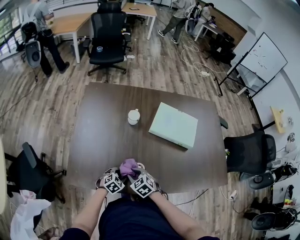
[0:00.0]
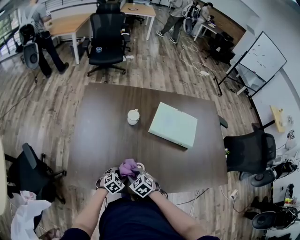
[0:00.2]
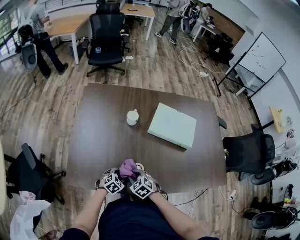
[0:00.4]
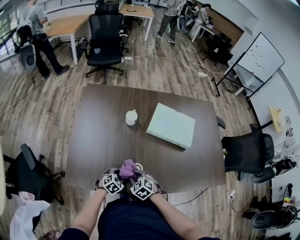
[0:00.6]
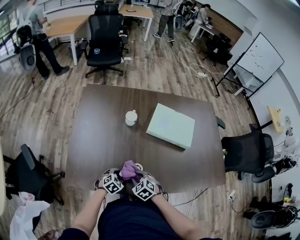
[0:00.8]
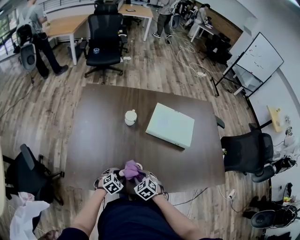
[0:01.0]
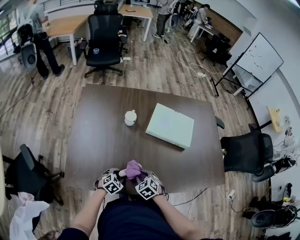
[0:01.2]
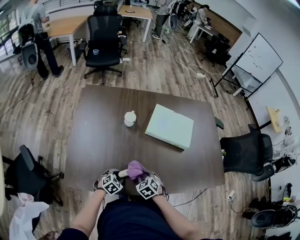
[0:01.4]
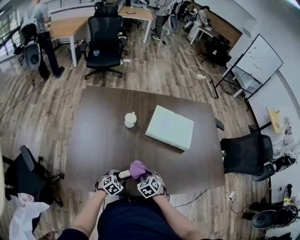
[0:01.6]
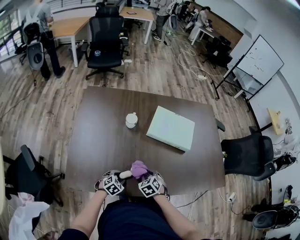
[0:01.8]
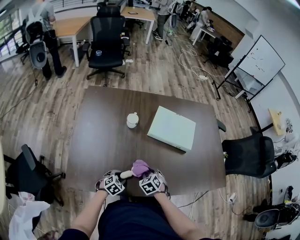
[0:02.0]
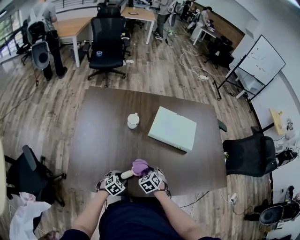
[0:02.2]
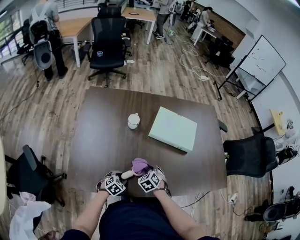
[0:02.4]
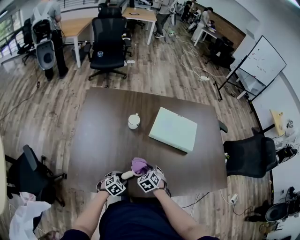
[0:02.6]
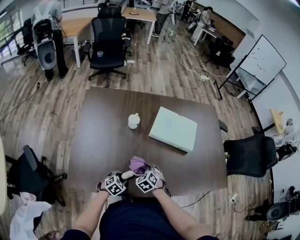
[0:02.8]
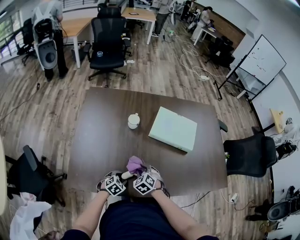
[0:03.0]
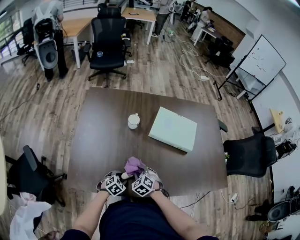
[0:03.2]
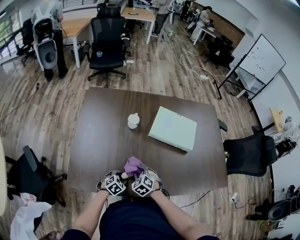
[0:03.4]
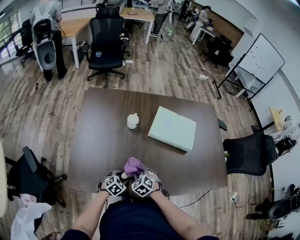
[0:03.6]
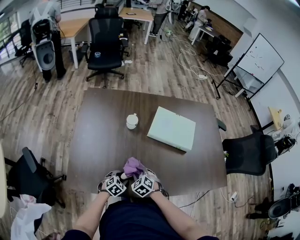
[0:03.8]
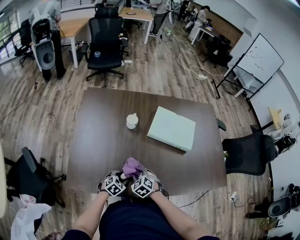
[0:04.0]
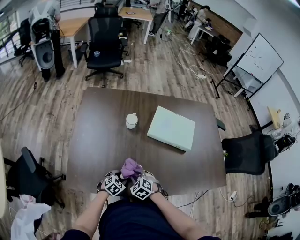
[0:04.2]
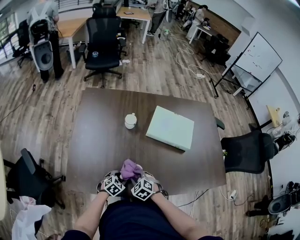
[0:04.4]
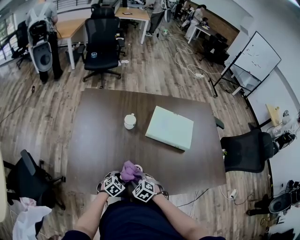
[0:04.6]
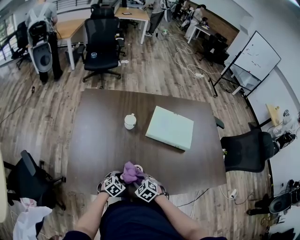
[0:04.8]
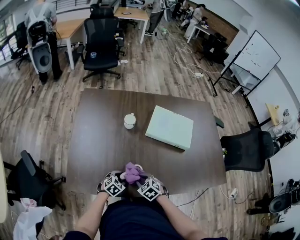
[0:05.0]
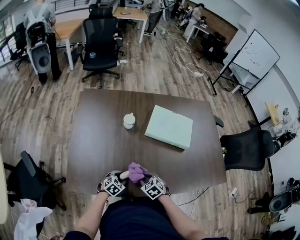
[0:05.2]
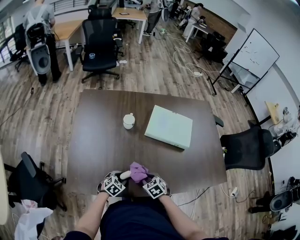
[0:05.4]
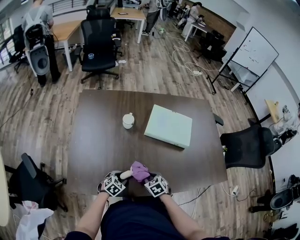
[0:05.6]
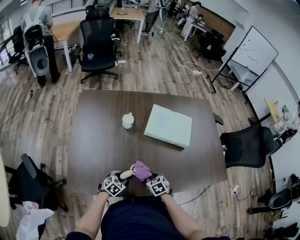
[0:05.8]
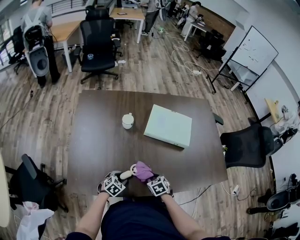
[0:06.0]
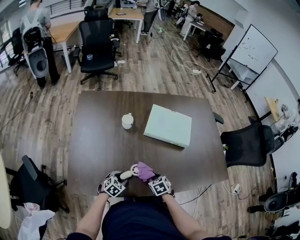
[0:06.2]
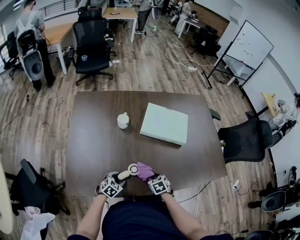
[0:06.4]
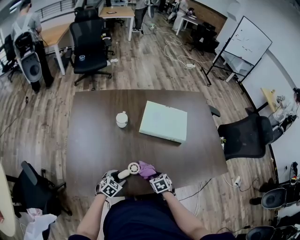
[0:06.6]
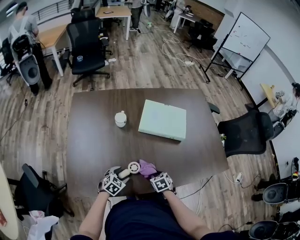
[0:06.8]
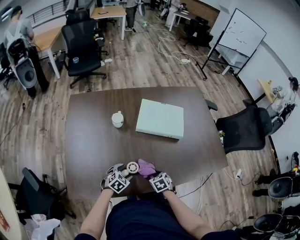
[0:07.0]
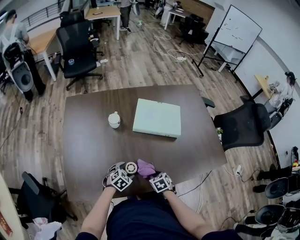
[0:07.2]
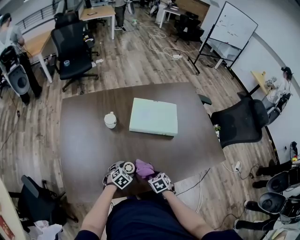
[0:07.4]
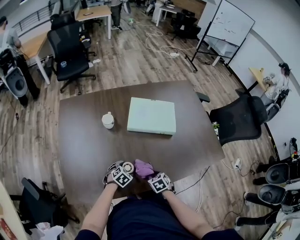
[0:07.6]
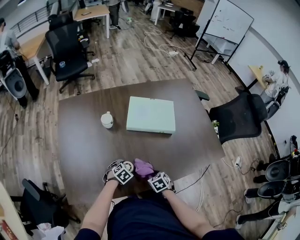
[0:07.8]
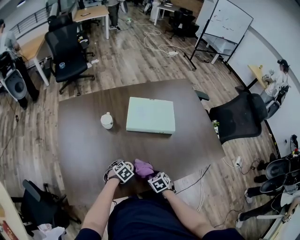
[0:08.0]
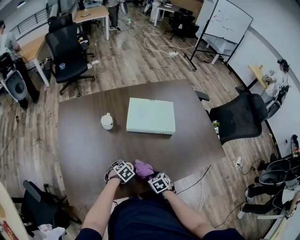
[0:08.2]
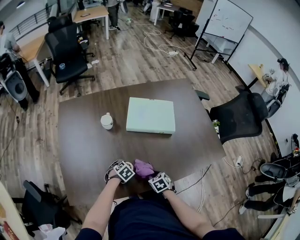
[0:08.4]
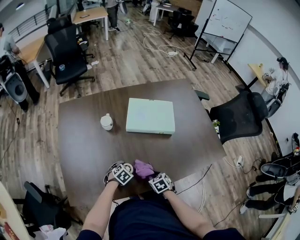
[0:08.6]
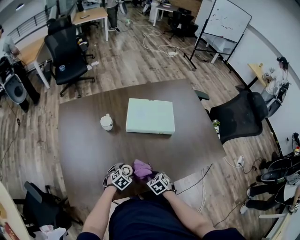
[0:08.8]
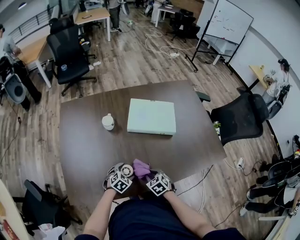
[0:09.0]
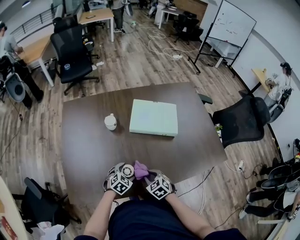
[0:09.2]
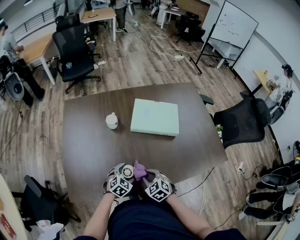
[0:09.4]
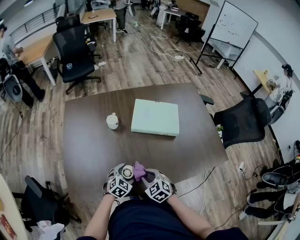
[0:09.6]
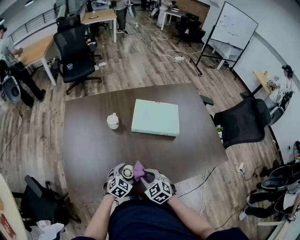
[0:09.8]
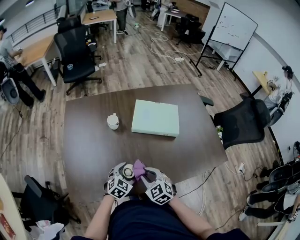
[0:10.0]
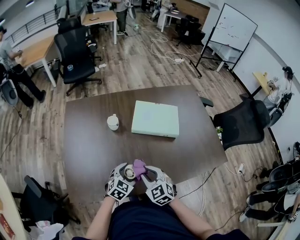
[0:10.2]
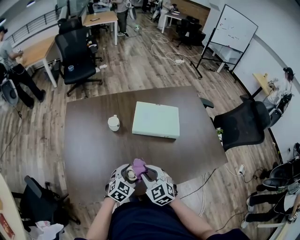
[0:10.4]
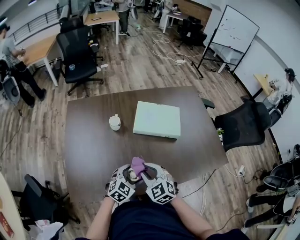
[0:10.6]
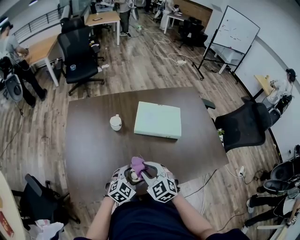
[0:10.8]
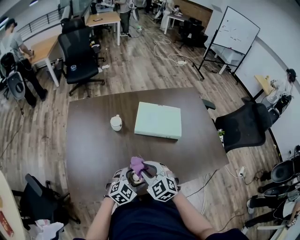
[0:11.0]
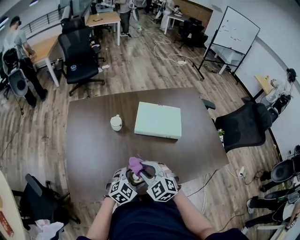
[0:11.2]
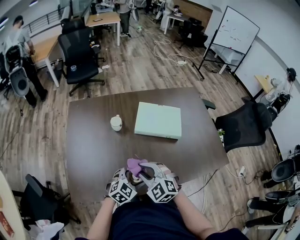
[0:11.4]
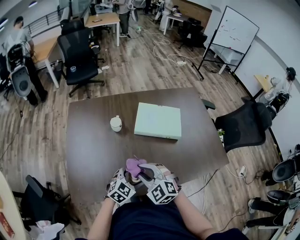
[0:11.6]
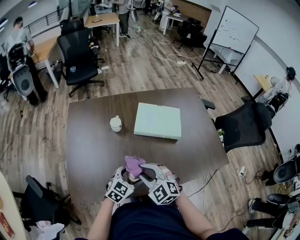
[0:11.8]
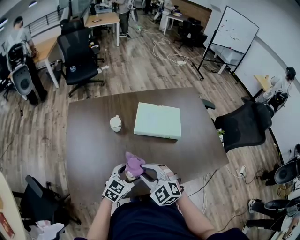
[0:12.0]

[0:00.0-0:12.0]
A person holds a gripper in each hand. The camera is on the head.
0:00.0 to 0:01.6: The right gripper shifts roughly 10 cm to the right.
0:01.6 to 0:03.0: The right gripper travels to the left by about 5 cm.
0:03.0 to 0:04.4: The right gripper is displaced backward by some 5 cm.
0:04.4 to 0:06.0: The right gripper goes roughly 10 cm to the right, and turns by approximately 30 degrees.
0:06.0 to 0:07.6: The left gripper shifts some 10 cm to the right and forward, and opens up; the right gripper shifts approximately 5 cm to the right.
0:07.6 to 0:09.0: The grippers make only small movements.
0:09.0 to 0:10.4: Both grippers move upward, about 15 cm. The right gripper changes its angle by about 30 degrees.
0:10.4 to 0:12.0: The right gripper moves approximately 5 cm.

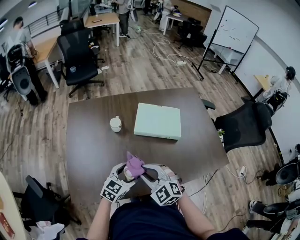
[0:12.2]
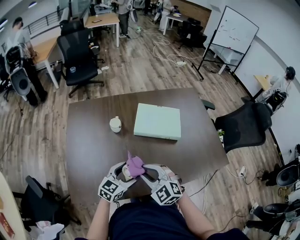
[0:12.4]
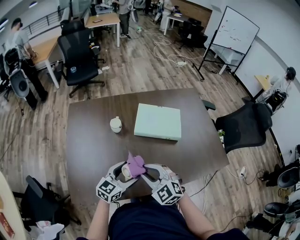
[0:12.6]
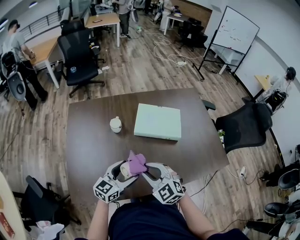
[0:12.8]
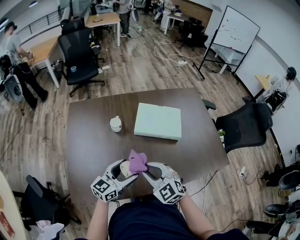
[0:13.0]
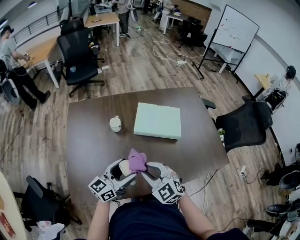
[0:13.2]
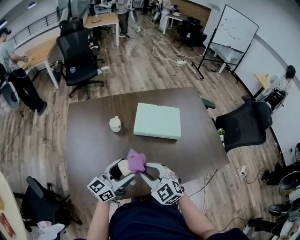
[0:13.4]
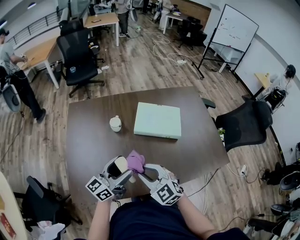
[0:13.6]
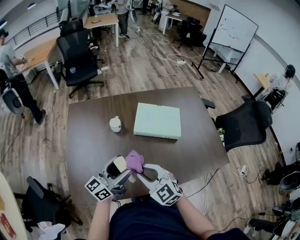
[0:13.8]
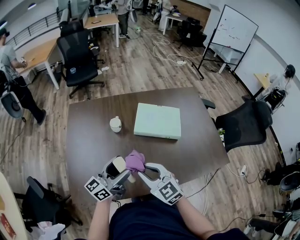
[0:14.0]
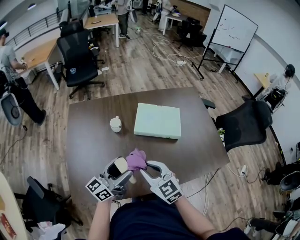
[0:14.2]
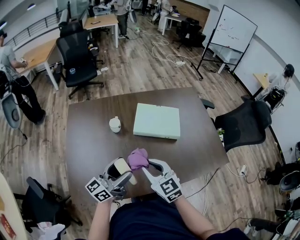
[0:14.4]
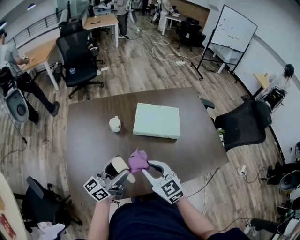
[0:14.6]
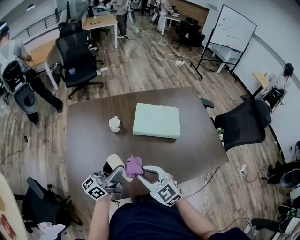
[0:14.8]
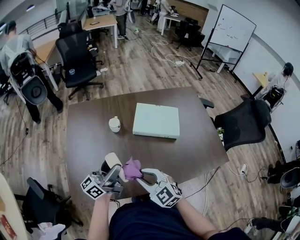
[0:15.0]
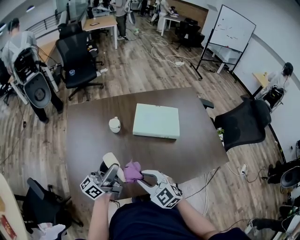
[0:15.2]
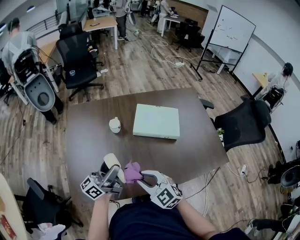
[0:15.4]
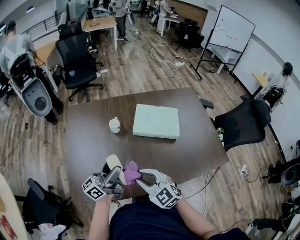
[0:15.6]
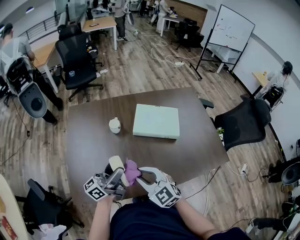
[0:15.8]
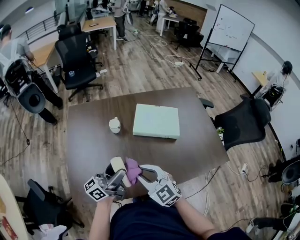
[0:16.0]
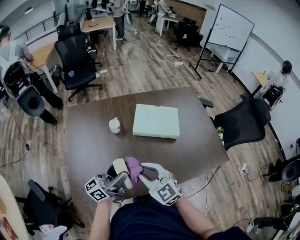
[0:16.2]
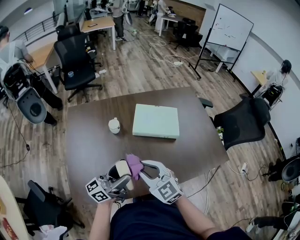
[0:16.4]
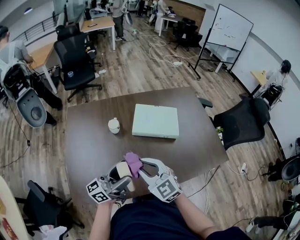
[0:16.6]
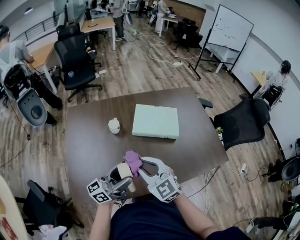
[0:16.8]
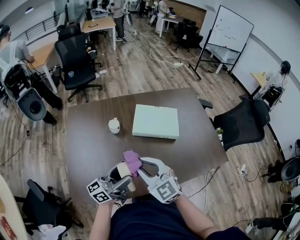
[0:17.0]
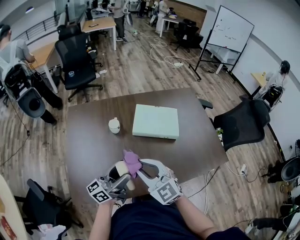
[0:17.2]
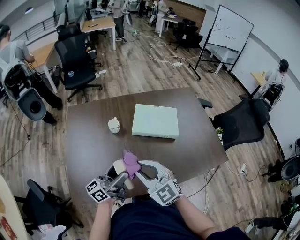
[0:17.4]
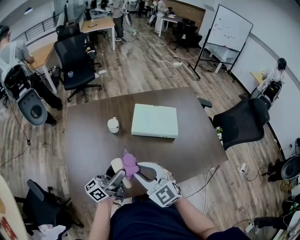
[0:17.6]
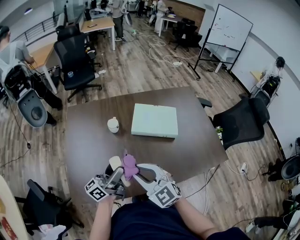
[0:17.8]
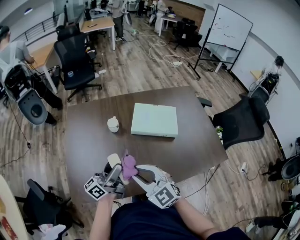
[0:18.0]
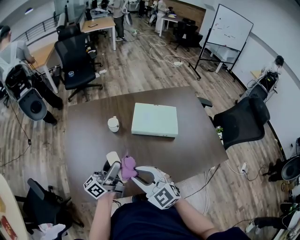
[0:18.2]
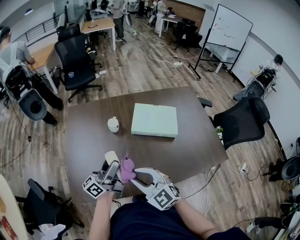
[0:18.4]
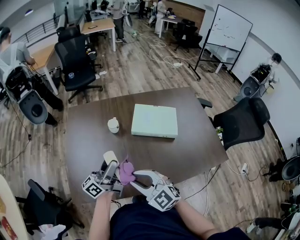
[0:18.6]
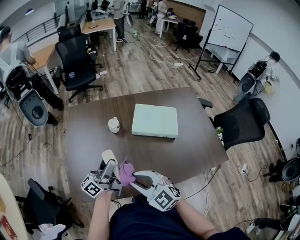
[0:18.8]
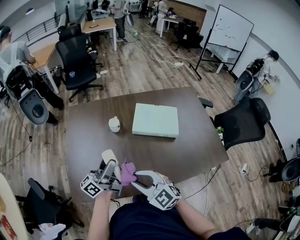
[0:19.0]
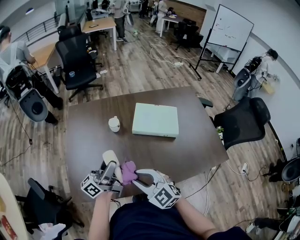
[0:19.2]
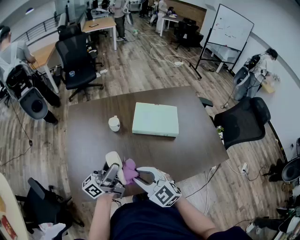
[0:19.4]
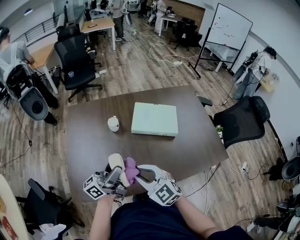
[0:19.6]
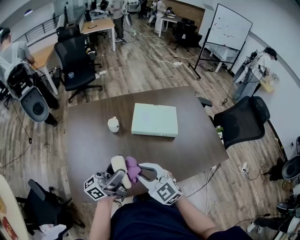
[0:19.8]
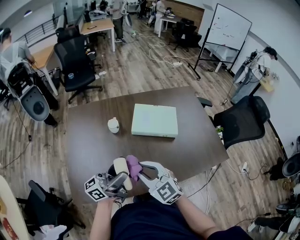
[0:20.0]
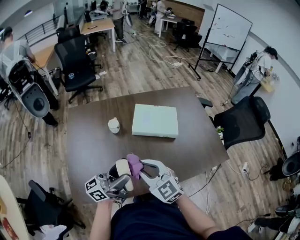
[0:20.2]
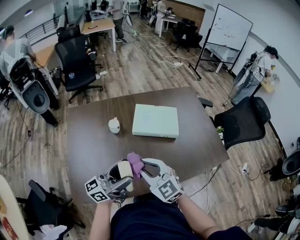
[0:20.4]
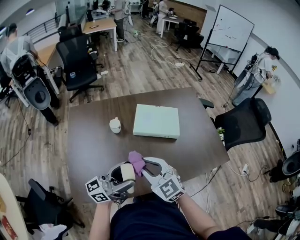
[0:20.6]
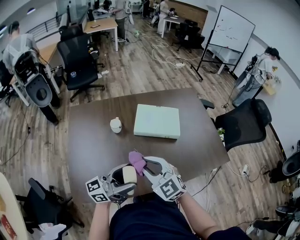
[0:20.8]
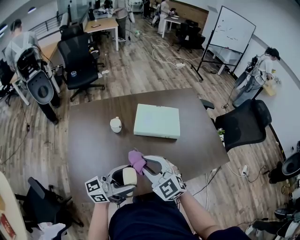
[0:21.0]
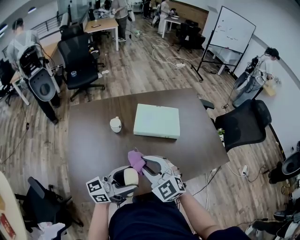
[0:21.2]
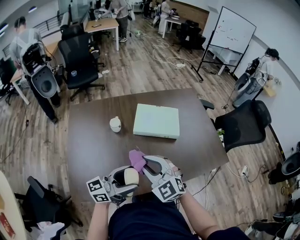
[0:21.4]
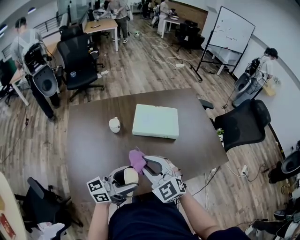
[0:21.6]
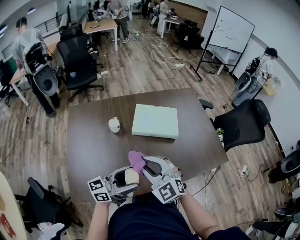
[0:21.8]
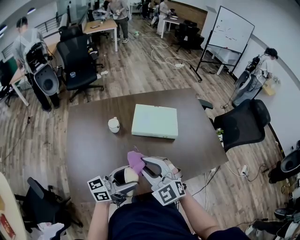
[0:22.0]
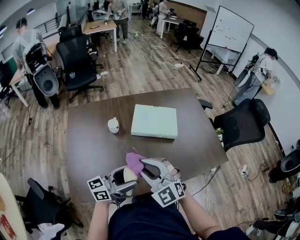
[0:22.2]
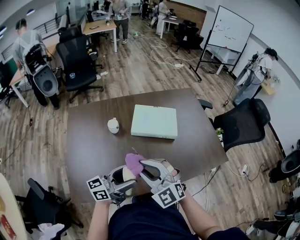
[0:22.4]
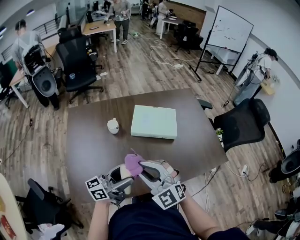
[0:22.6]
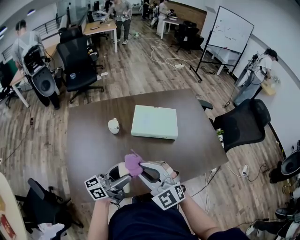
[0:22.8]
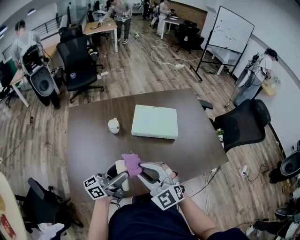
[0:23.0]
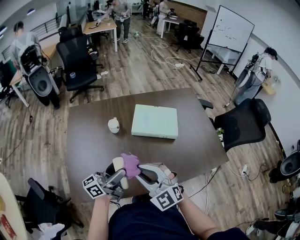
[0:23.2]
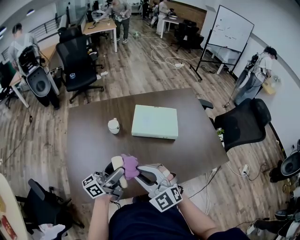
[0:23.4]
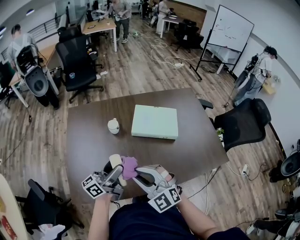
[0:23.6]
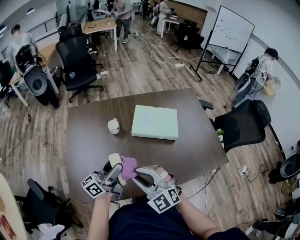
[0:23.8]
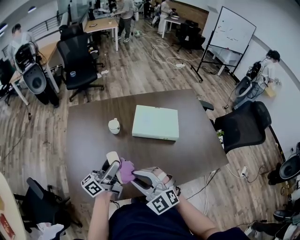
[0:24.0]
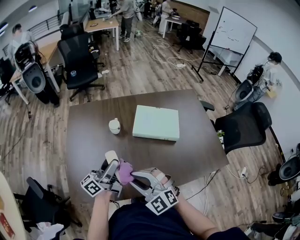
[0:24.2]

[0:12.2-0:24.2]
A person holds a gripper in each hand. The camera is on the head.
0:12.2 to 0:13.8: The left gripper is displaced upward by roughly 10 cm, and tilts its fingers some 40 degrees upward.
0:13.8 to 0:15.2: The left gripper changes place by roughly 5 cm.
0:15.2 to 0:16.6: The left gripper moves to the right, approximately 5 cm, while the right gripper travels upward by about 5 cm.
0:16.6 to 0:18.2: The left gripper shifts by about 5 cm. The right gripper moves backward, approximately 5 cm.
0:18.2 to 0:19.8: The left gripper ends up about 5 cm from where it was.
0:19.8 to 0:21.2: The left gripper ends up roughly 5 cm from where it was, and rotates about 20 degrees.
0:21.2 to 0:22.6: There are only small adjustments of the grippers.
0:22.6 to 0:24.2: The left gripper moves forward and to the left, roughly 10 cm, and rotates approximately 30 degrees, while the right gripper moves some 5 cm.
